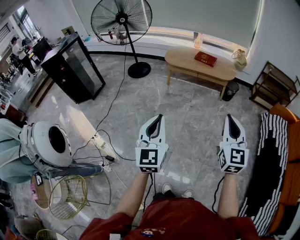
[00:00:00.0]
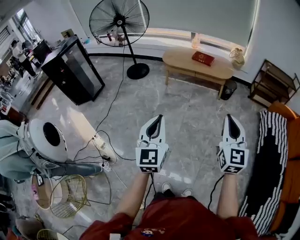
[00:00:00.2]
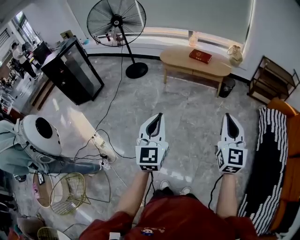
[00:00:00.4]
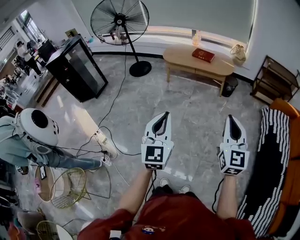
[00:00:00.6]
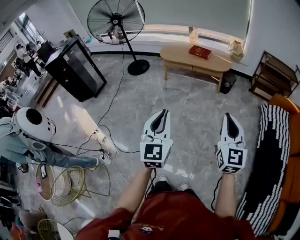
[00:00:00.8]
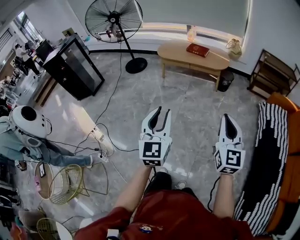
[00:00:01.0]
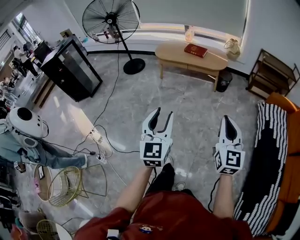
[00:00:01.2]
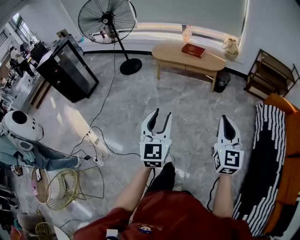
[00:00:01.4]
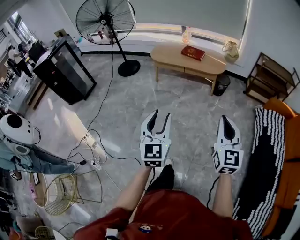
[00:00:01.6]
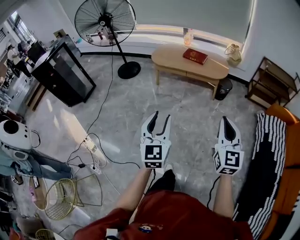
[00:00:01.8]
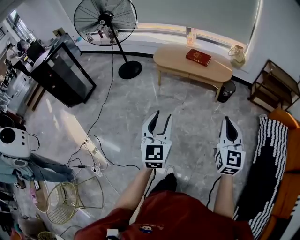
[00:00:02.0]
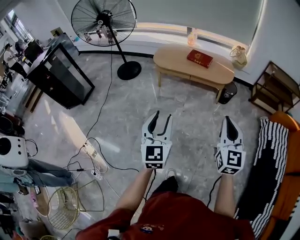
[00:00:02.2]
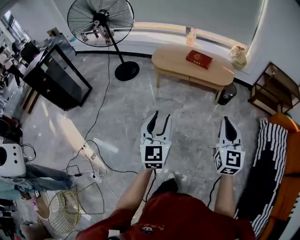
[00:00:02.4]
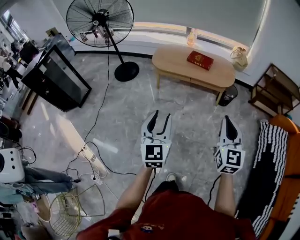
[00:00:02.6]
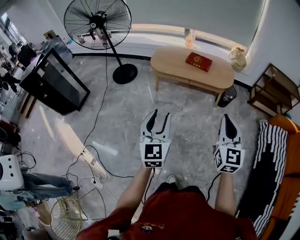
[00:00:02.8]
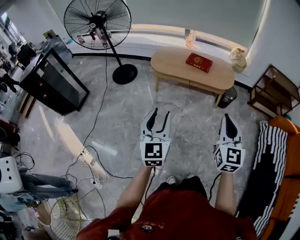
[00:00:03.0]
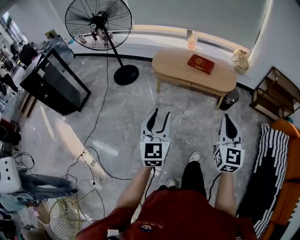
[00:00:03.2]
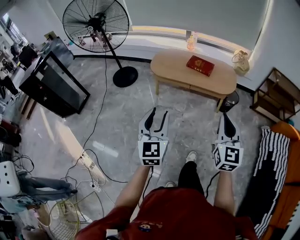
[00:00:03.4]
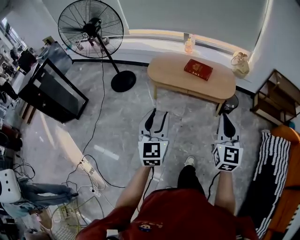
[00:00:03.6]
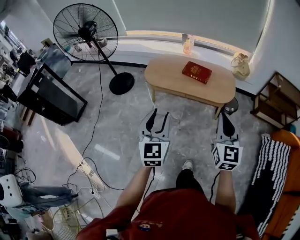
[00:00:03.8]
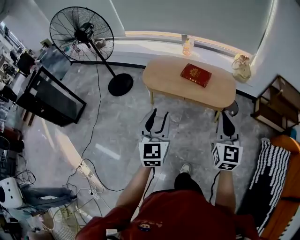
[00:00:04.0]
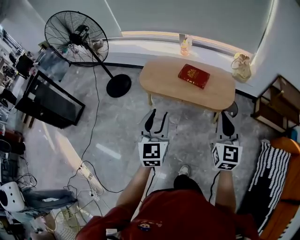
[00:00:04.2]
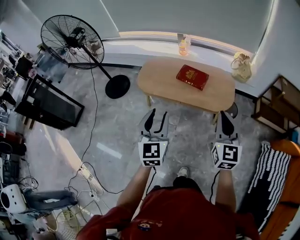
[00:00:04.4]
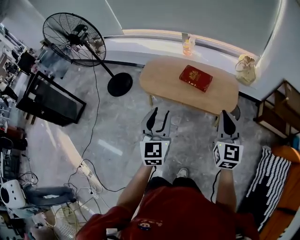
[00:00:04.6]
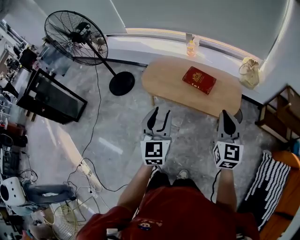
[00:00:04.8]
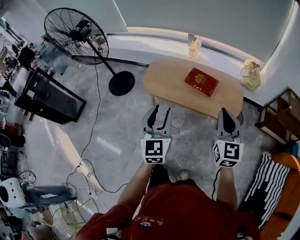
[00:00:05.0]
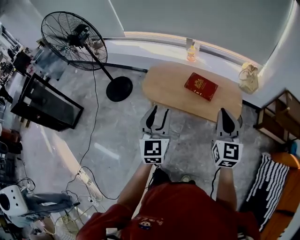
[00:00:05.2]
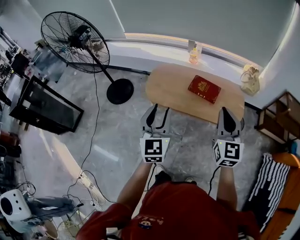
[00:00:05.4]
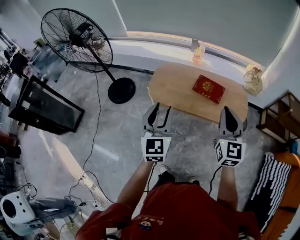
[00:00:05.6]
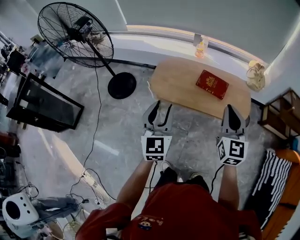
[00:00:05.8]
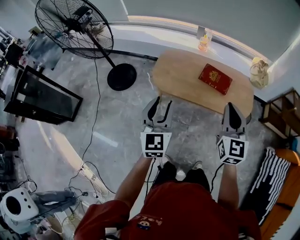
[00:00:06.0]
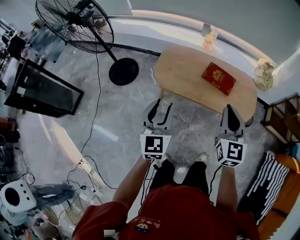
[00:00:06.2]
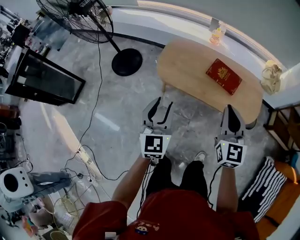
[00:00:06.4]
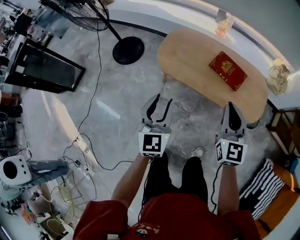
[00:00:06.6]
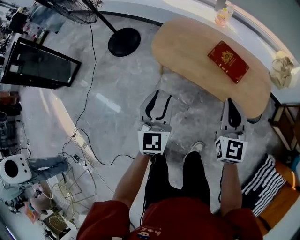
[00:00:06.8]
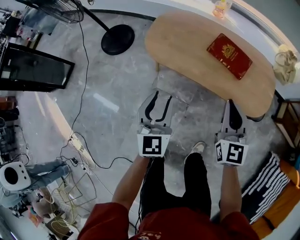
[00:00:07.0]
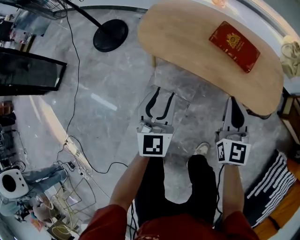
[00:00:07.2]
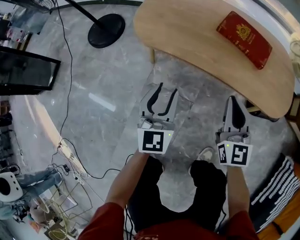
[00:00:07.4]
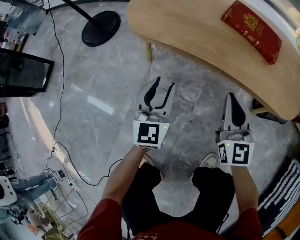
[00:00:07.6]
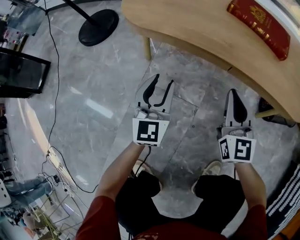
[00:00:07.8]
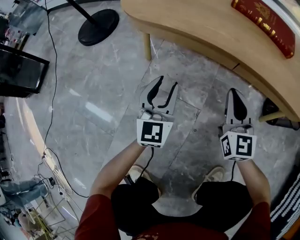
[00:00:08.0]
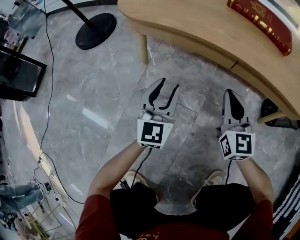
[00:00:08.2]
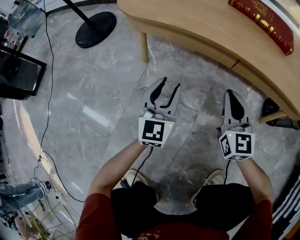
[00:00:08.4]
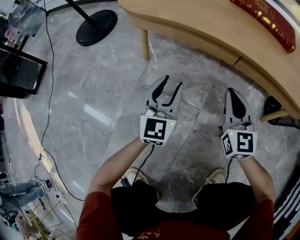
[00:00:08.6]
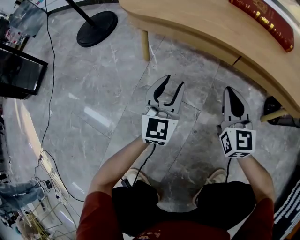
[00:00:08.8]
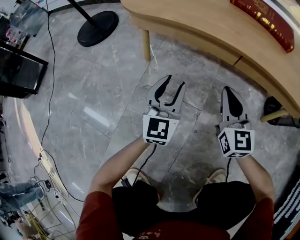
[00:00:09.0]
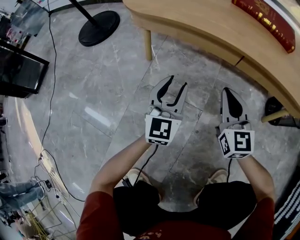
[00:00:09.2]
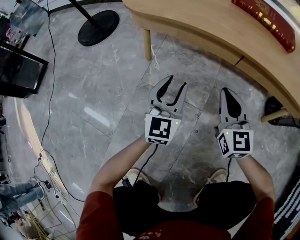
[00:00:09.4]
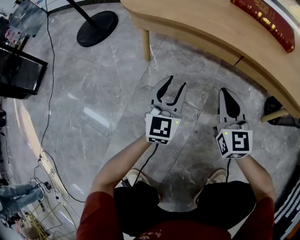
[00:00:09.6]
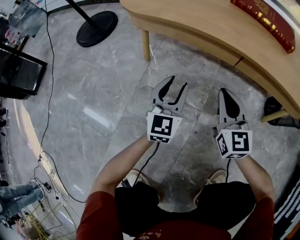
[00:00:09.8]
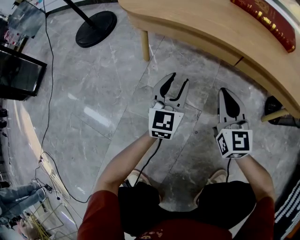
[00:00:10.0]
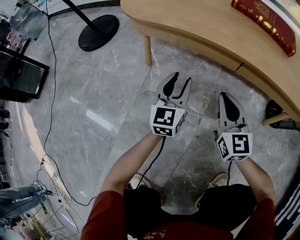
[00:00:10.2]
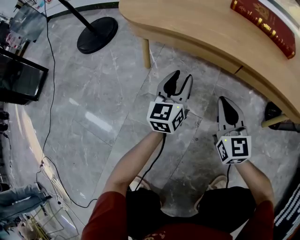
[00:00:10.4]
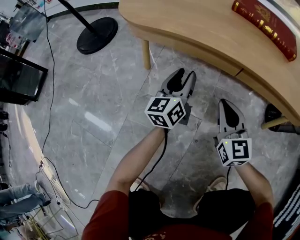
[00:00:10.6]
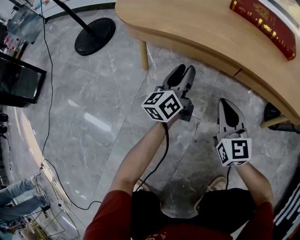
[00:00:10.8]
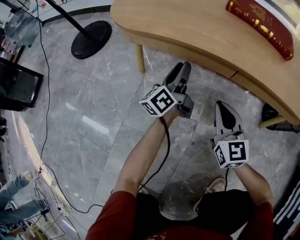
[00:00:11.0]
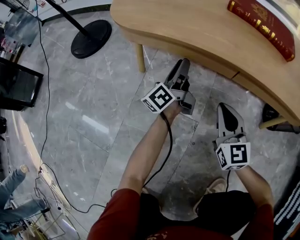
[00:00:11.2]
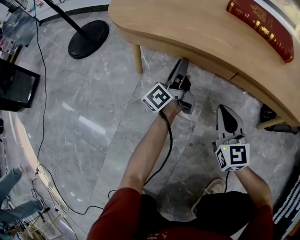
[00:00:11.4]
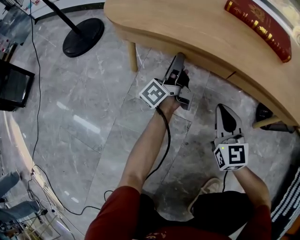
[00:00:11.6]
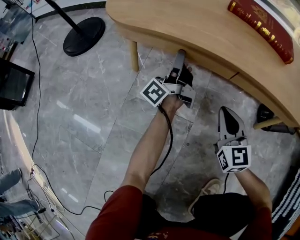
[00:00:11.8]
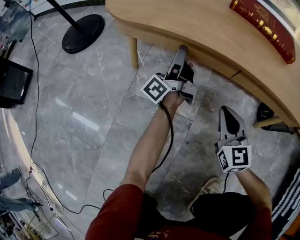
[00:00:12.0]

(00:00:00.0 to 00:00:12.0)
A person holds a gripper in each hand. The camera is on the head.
00:00:00.0 - 00:00:01.6: Both grippers move to the right, about 15 cm. The left gripper opens its fingers.
00:00:01.6 - 00:00:03.0: The grippers both shift forward by approximately 30 cm.
00:00:03.0 - 00:00:04.4: The two grippers go roughly 35 cm forward and to the right.
00:00:04.4 - 00:00:06.0: Both grippers move to the left and forward, approximately 25 cm.
00:00:06.0 - 00:00:07.6: The grippers both shift downward by some 50 cm.
00:00:07.6 - 00:00:09.0: The two grippers go some 15 cm downward.
00:00:09.0 - 00:00:10.4: The left gripper travels forward by roughly 5 cm, and swivels some 20 degrees.
00:00:10.4 - 00:00:12.0: The left gripper is displaced forward by roughly 10 cm, and rotates around the line of its fingers by roughly 60 degrees, counterclockwise from behind.

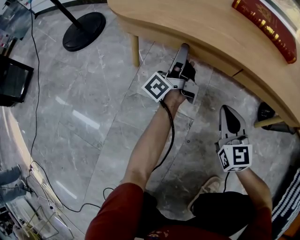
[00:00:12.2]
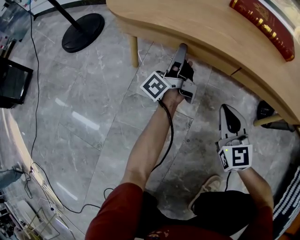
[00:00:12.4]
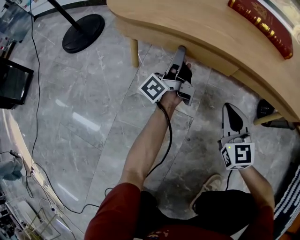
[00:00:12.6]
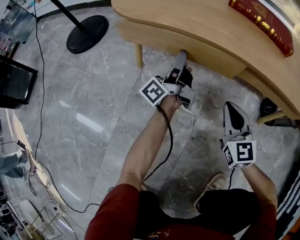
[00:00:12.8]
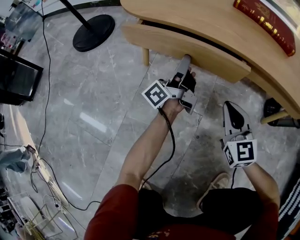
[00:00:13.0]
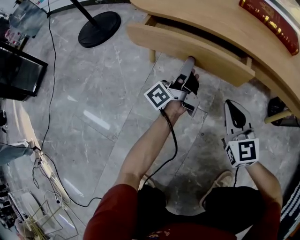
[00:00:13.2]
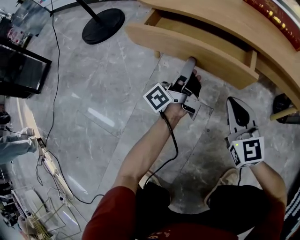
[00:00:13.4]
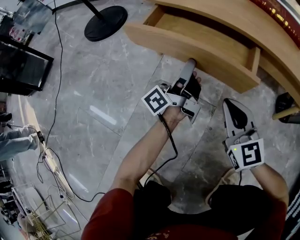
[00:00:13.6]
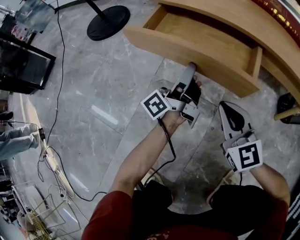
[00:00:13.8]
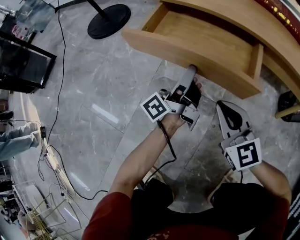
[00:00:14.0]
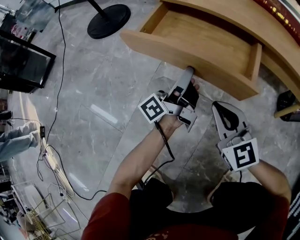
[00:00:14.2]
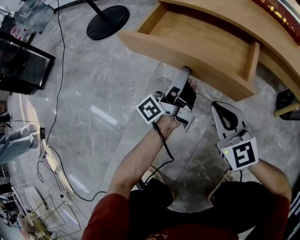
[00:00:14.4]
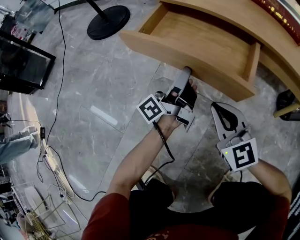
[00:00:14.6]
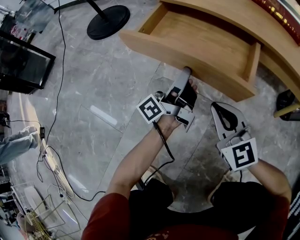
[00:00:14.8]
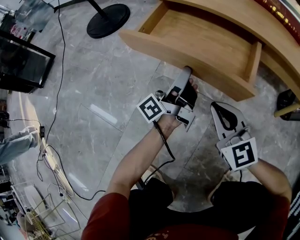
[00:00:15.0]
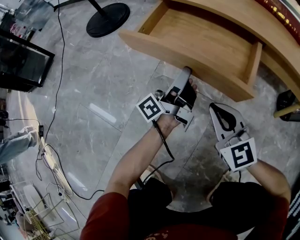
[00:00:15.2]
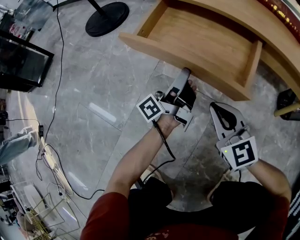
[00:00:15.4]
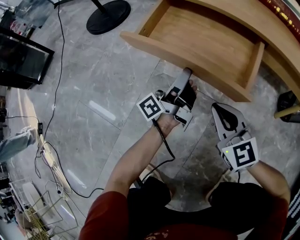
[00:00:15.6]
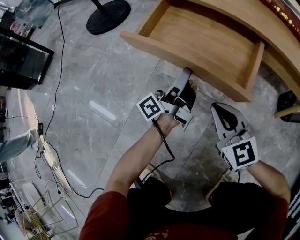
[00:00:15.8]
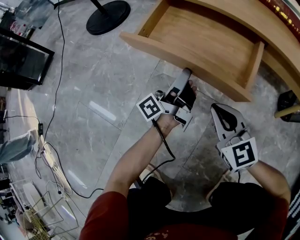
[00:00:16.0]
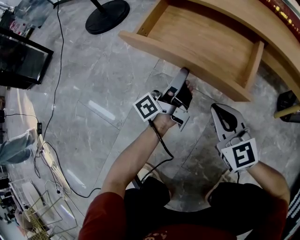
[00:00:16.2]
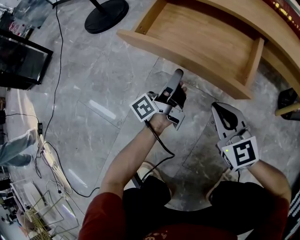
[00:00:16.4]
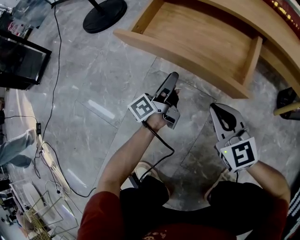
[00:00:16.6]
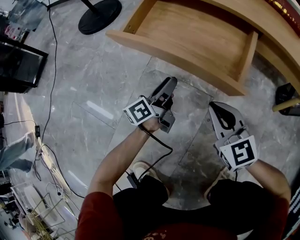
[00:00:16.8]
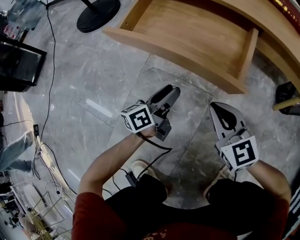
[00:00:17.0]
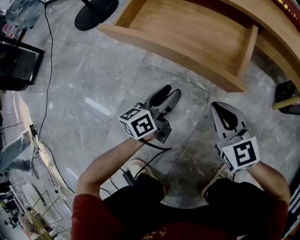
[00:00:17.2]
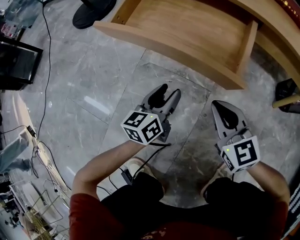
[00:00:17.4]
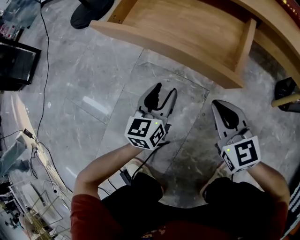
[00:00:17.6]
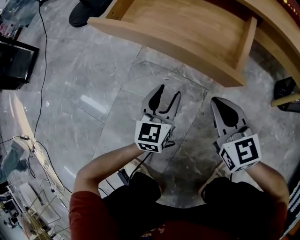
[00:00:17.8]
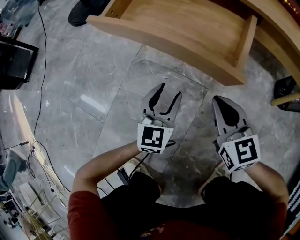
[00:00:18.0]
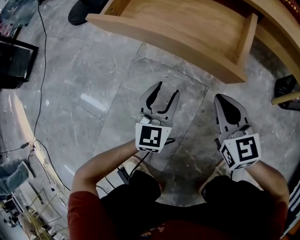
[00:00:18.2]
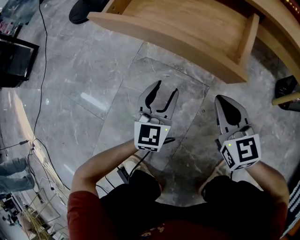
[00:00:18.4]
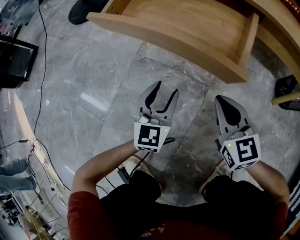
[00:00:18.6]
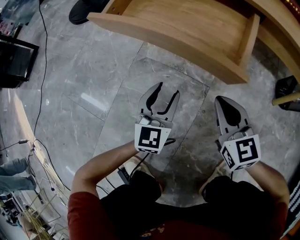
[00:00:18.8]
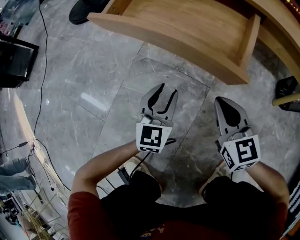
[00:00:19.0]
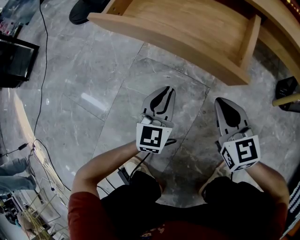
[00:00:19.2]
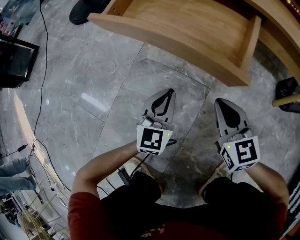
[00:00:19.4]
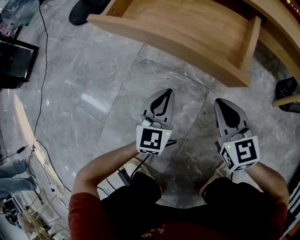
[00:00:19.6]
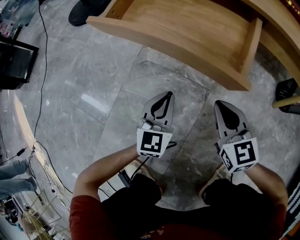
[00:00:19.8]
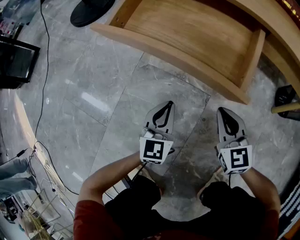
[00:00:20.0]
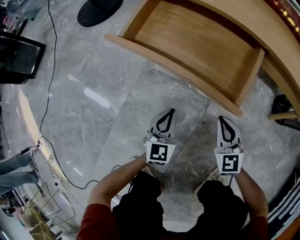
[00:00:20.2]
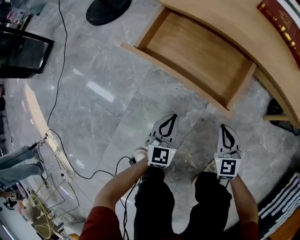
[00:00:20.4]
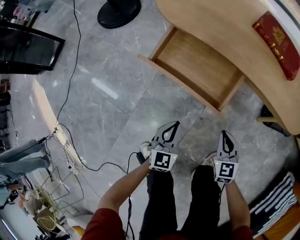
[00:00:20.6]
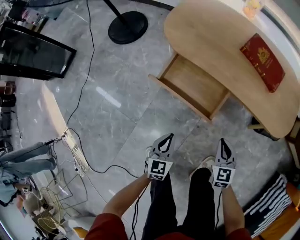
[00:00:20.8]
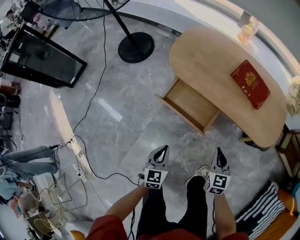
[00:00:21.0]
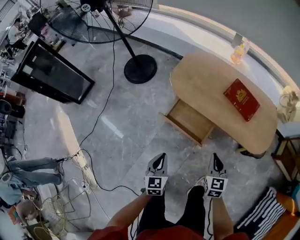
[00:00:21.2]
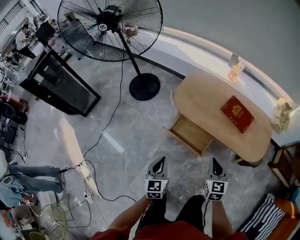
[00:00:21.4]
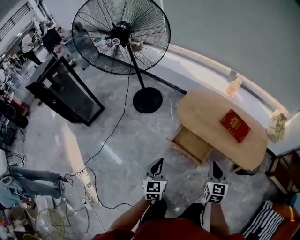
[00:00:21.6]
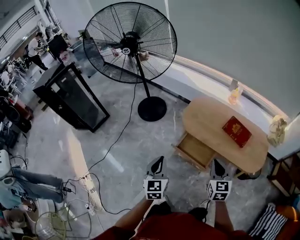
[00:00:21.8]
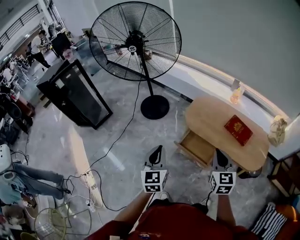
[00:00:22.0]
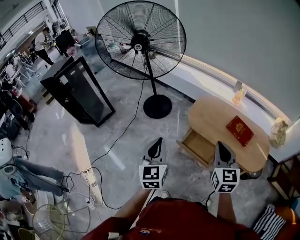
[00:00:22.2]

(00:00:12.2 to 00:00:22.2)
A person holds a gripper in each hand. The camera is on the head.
00:00:12.2 - 00:00:13.6: The left gripper moves backward and to the left, about 15 cm; the right gripper shifts approximately 10 cm to the left and backward.
00:00:13.6 - 00:00:15.0: The left gripper changes place by about 5 cm; the right gripper heads to the left, covering about 5 cm.
00:00:15.0 - 00:00:16.4: The left gripper heads downward, covering about 5 cm.
00:00:16.4 - 00:00:18.0: The right gripper moves to the right, approximately 5 cm; the left gripper heads backward and downward, covering roughly 10 cm, and twists roughly 80 degrees clockwise, seen from behind.
00:00:18.0 - 00:00:19.4: The left gripper closes up.
00:00:19.4 - 00:00:20.8: Both grippers travel together upward, about 25 cm. The left gripper turns by roughly 20 degrees.
00:00:20.8 - 00:00:22.2: Both grippers move upward, some 60 cm. The left gripper rotates roughly 30 degrees. Meanwhile the right gripper rotates roughly 30 degrees.

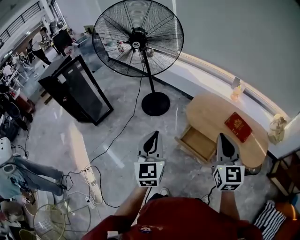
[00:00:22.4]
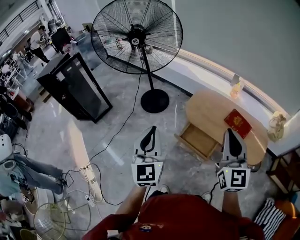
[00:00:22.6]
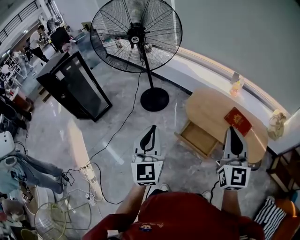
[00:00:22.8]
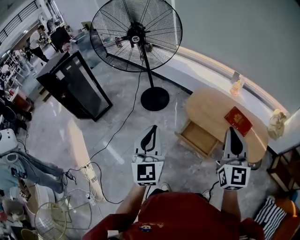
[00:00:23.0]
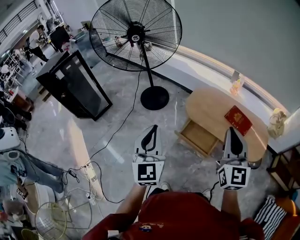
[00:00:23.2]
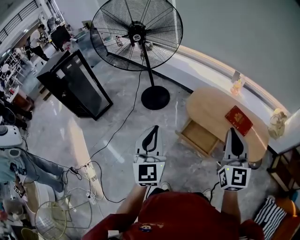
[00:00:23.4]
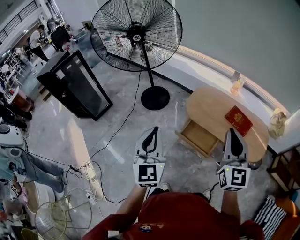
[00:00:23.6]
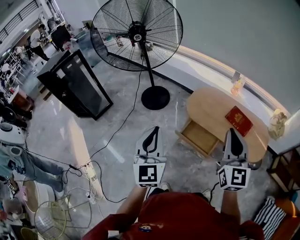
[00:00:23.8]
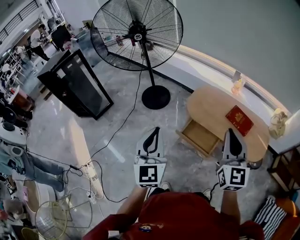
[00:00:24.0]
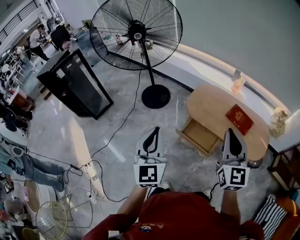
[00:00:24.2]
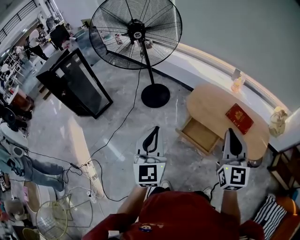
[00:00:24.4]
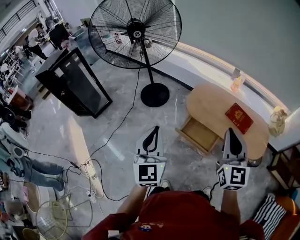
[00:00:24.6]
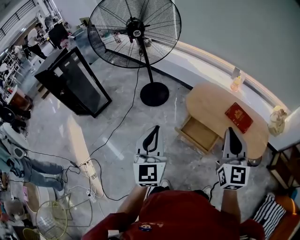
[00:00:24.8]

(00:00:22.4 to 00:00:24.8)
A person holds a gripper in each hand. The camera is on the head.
00:00:22.4 - 00:00:24.8: There are only small adjustments of the grippers.
